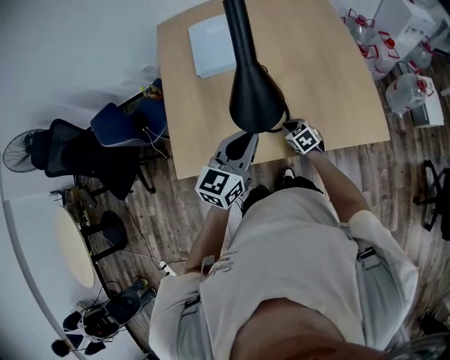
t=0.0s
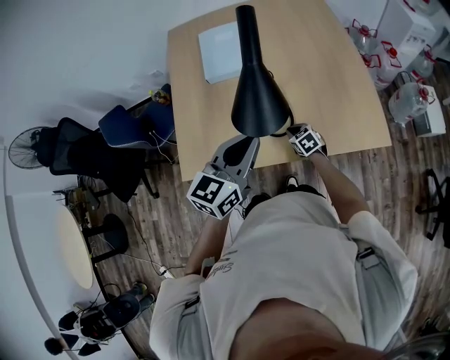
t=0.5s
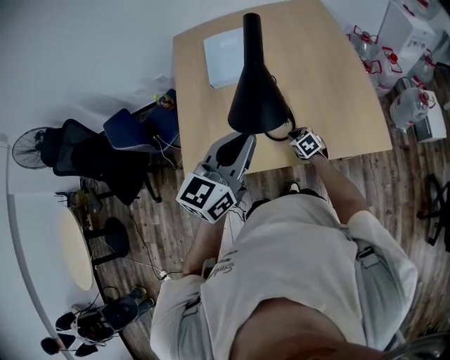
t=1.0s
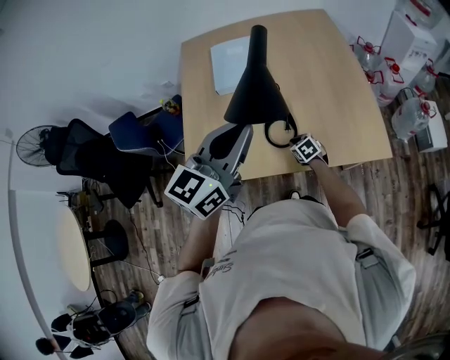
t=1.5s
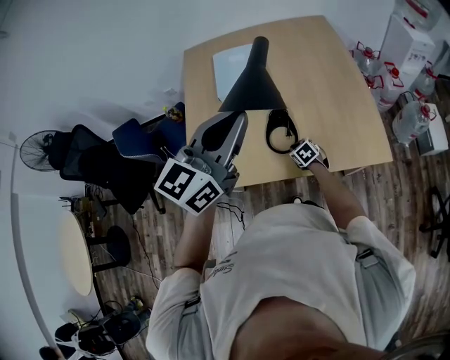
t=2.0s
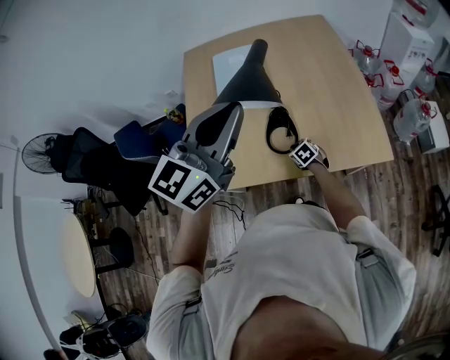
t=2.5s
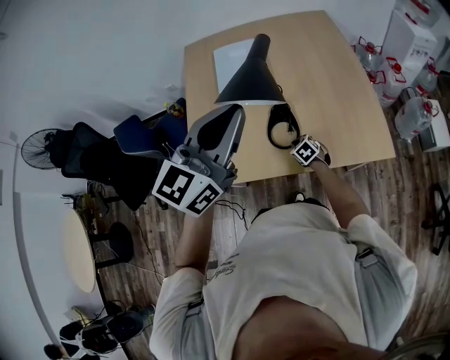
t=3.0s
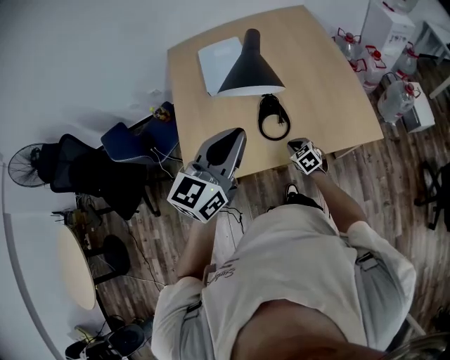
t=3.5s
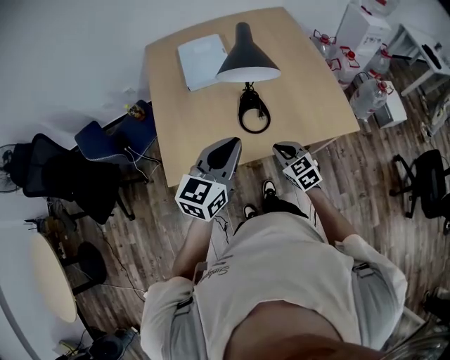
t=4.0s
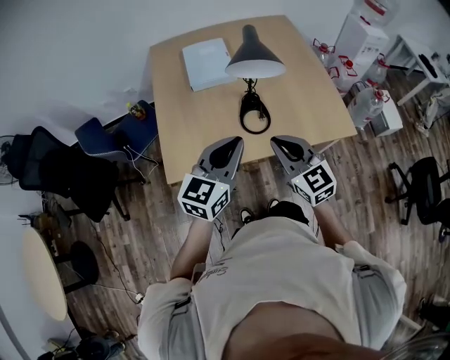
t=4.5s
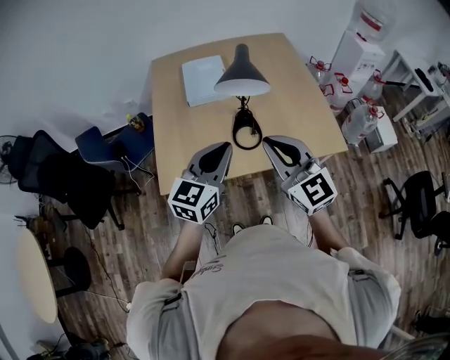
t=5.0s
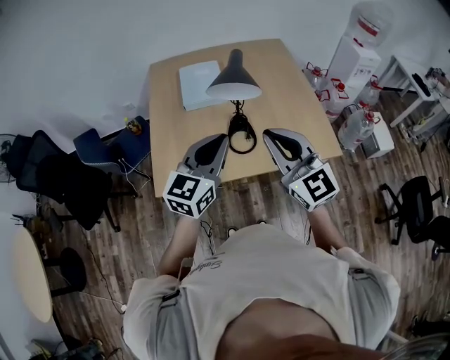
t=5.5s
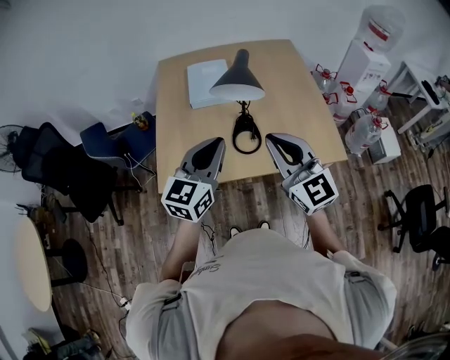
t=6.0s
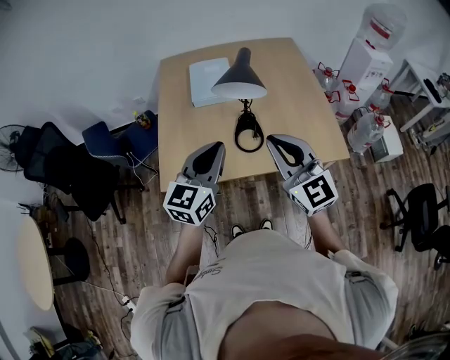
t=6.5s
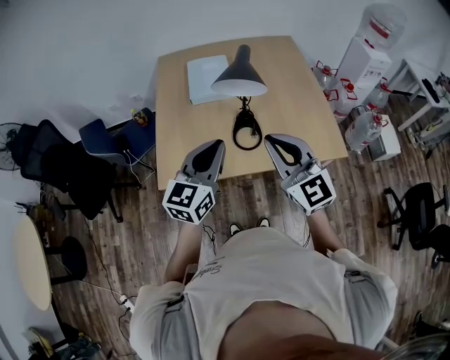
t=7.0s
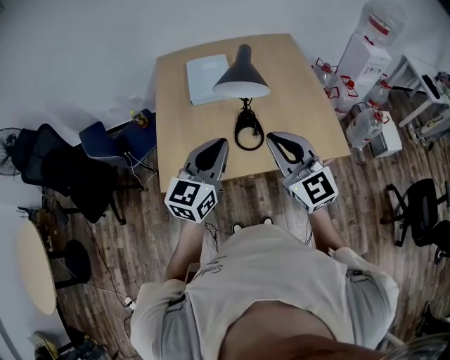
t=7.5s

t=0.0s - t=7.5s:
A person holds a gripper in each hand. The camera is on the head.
t=0.0s - t=2.0s: The left gripper heads upward, covering about 20 cm.
t=2.0s - t=4.0s: The left gripper moves downward and backward, about 15 cm, while the right gripper goes approximately 20 cm upward and backward, and changes its angle by about 20 degrees.
t=4.0s - t=5.5s: The left gripper heads upward, covering roughly 5 cm. The right gripper is displaced upward by some 30 cm, and angles its fingers upward, by about 40 degrees.
t=5.5s - t=7.5s: There are only small adjustments of the grippers.

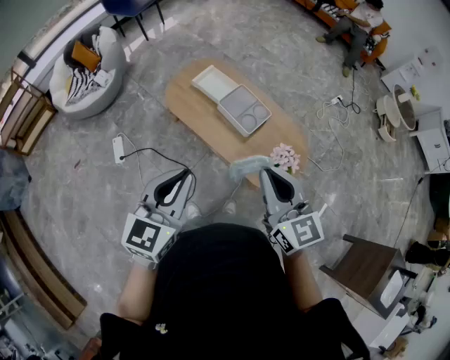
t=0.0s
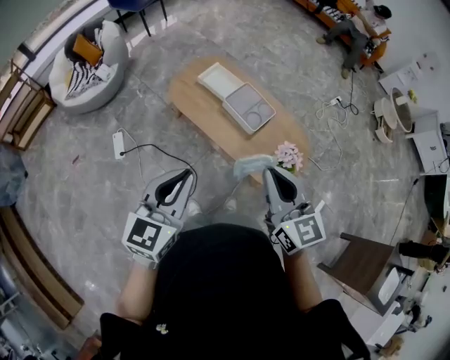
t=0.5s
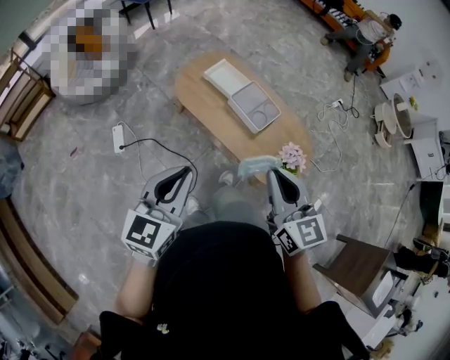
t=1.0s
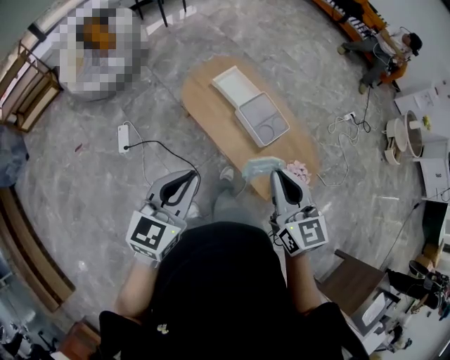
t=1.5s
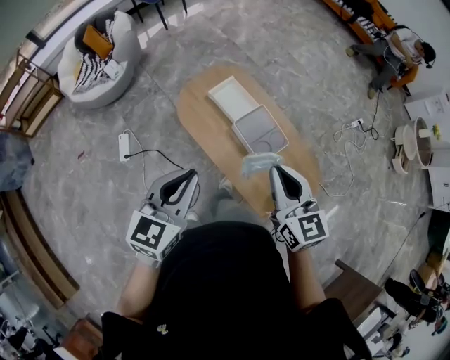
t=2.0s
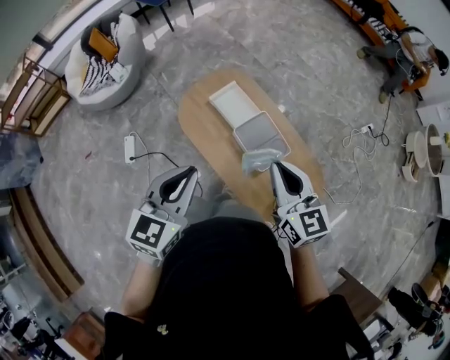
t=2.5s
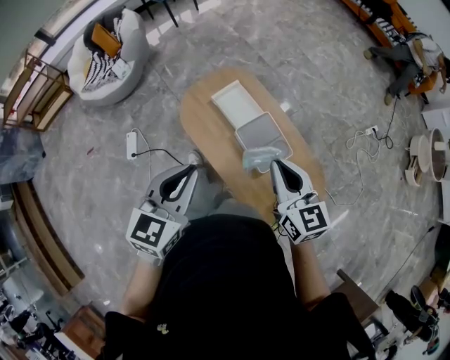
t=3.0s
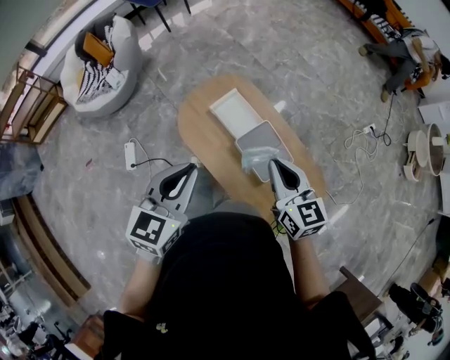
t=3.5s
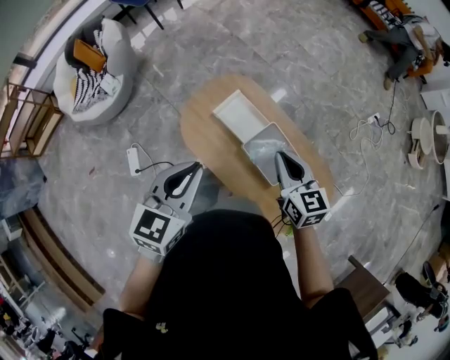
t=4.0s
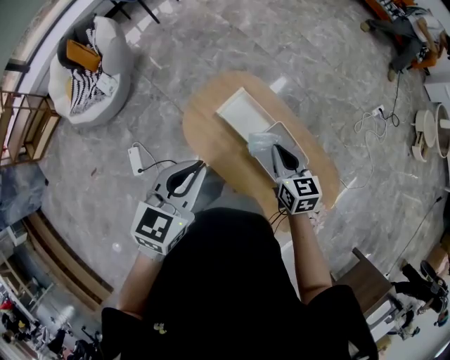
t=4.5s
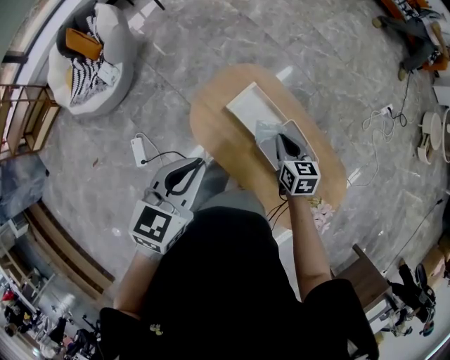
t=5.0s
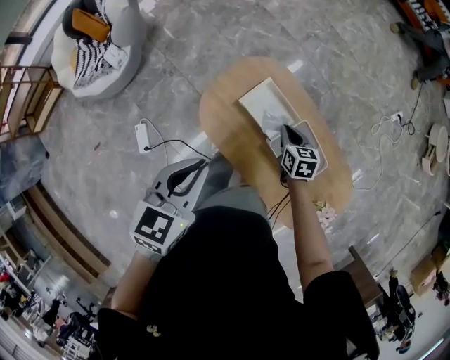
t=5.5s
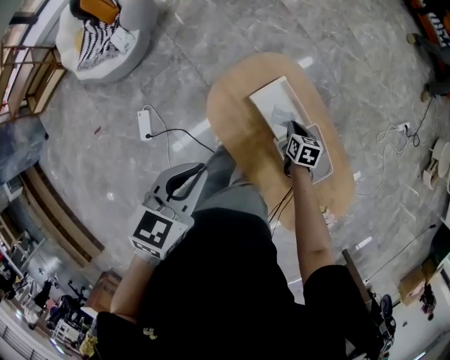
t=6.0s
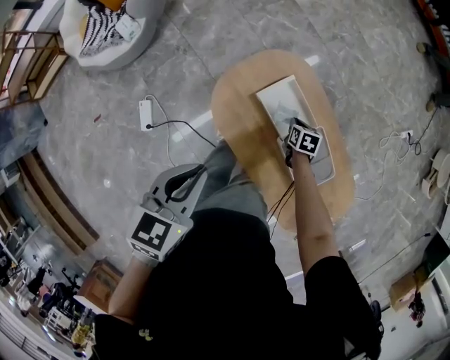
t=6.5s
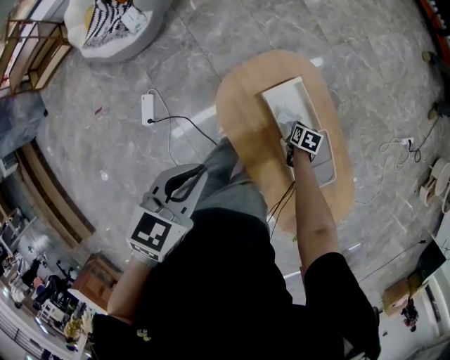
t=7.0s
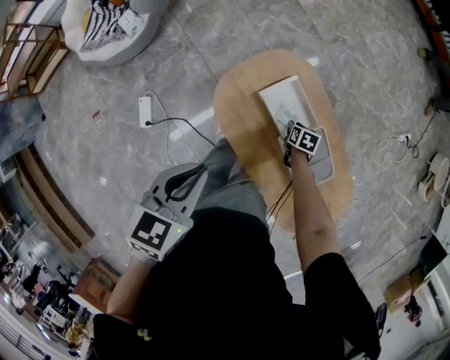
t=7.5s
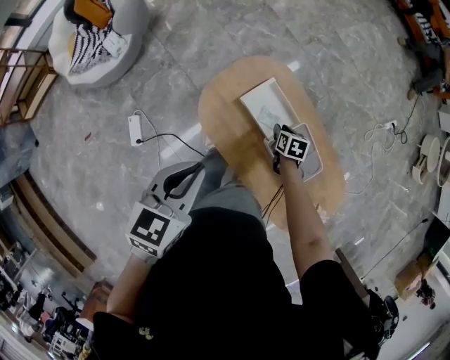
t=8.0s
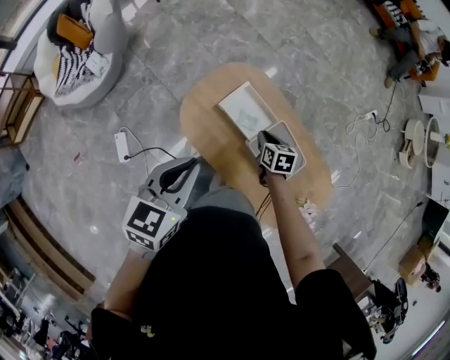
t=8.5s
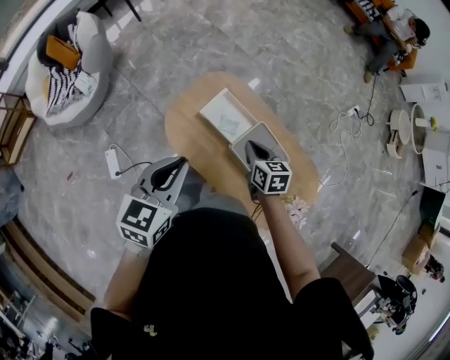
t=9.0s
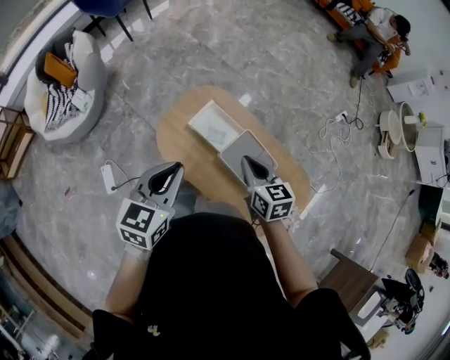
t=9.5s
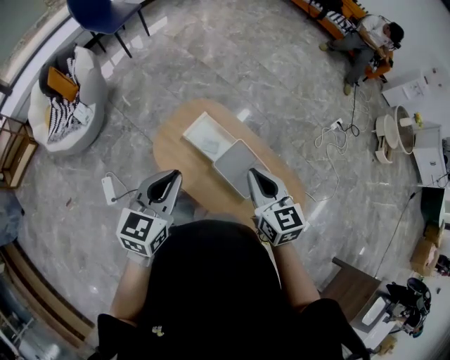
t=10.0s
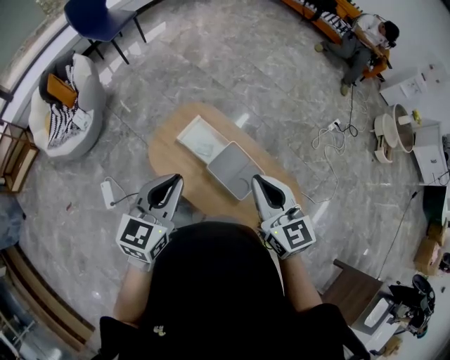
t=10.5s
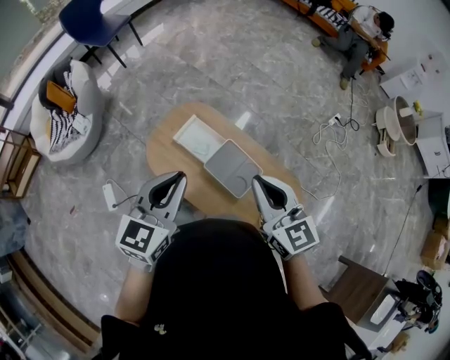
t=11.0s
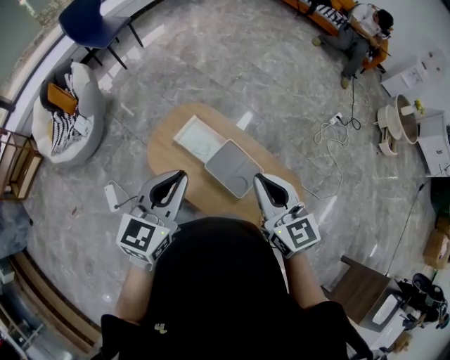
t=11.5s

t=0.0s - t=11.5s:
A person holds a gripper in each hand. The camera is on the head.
t=0.0s - t=2.0s: The grippers both shift forward by approximately 20 cm.
t=2.0s - t=4.0s: The left gripper goes roughly 25 cm forward. The right gripper travels forward and downward by about 25 cm.
t=4.0s - t=6.0s: The left gripper goes some 15 cm downward, to the left and forward. Meanwhile the right gripper moves downward and forward, roughly 35 cm, and tips its fingers downward by some 30 degrees.
t=6.0s - t=7.5s: The right gripper shifts approximately 10 cm downward, and opens up.
t=7.5s - t=9.5s: The left gripper travels to the right and upward by some 15 cm, and changes its angle by some 20 degrees. The right gripper shifts some 40 cm upward, angles its fingers upward, by approximately 40 degrees, and closes its fingers.
t=9.5s - t=11.5s: The left gripper shifts approximately 15 cm to the right and upward, while the right gripper goes some 20 cm upward and to the right, and swivels roughly 20 degrees.

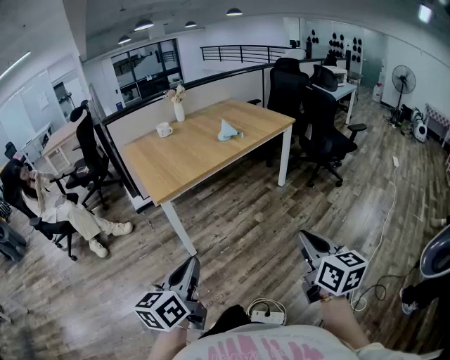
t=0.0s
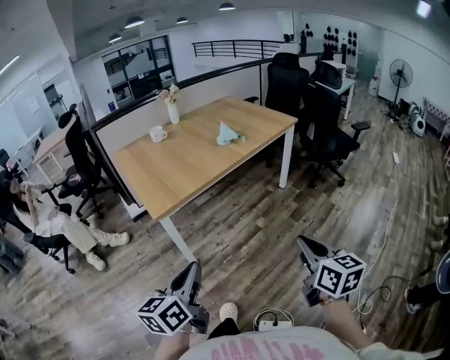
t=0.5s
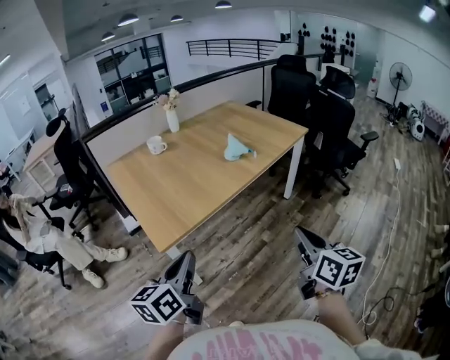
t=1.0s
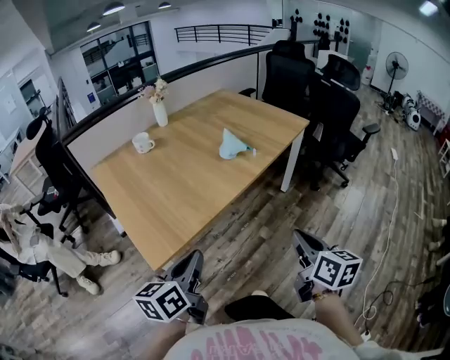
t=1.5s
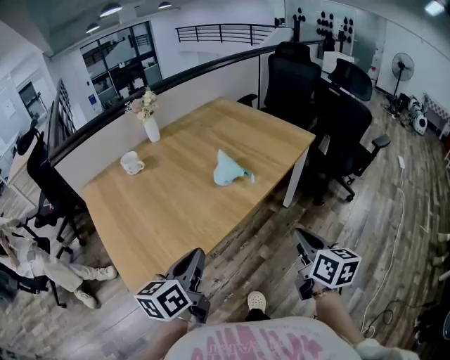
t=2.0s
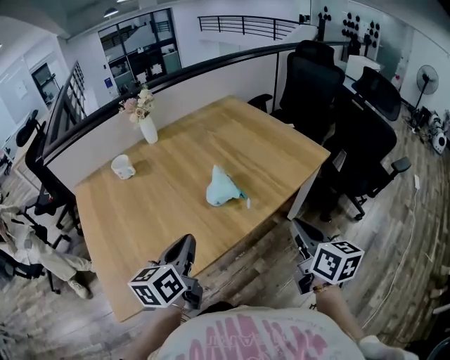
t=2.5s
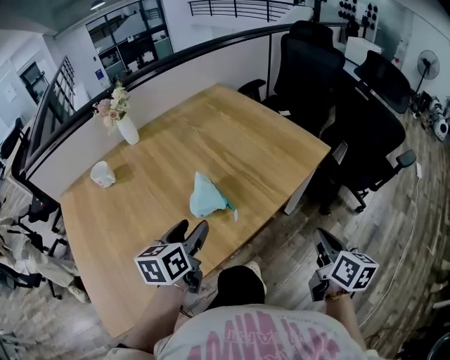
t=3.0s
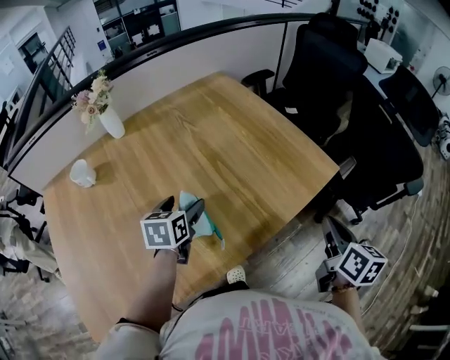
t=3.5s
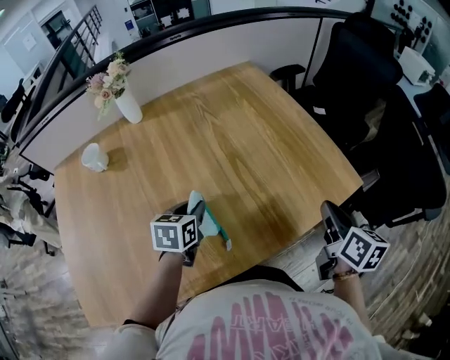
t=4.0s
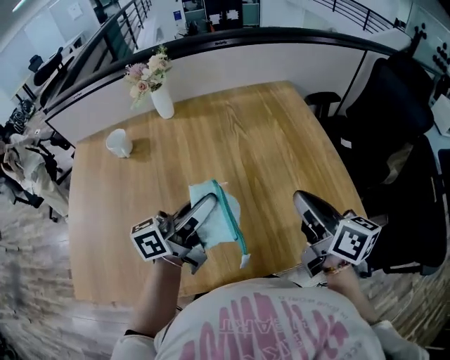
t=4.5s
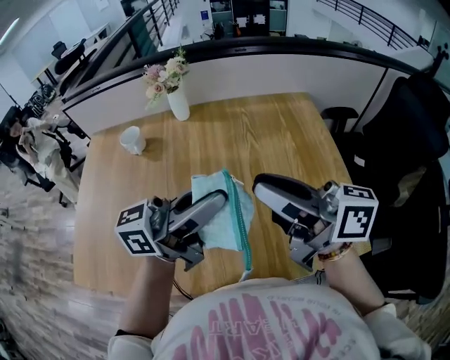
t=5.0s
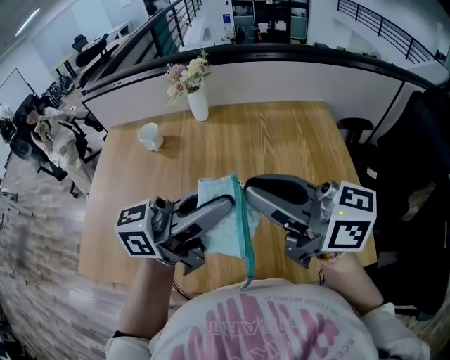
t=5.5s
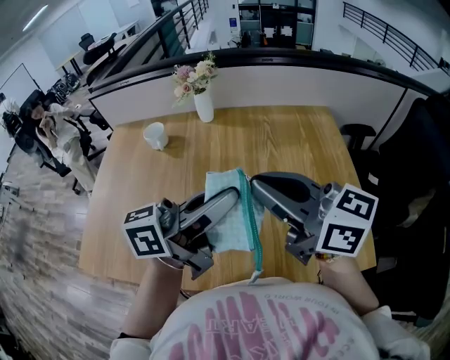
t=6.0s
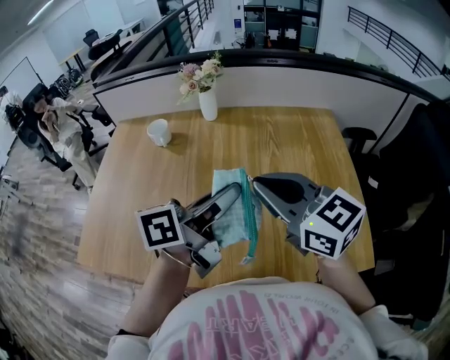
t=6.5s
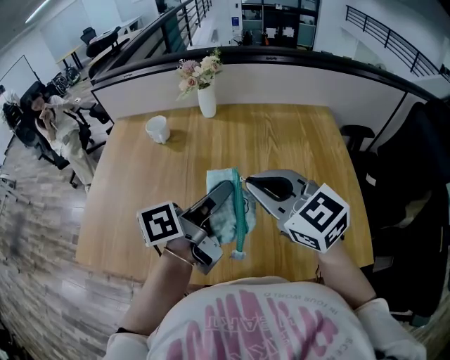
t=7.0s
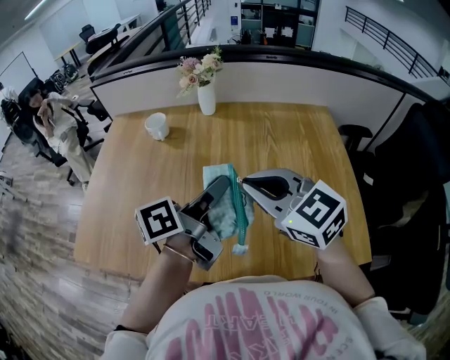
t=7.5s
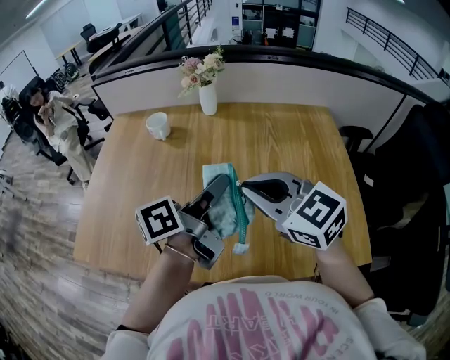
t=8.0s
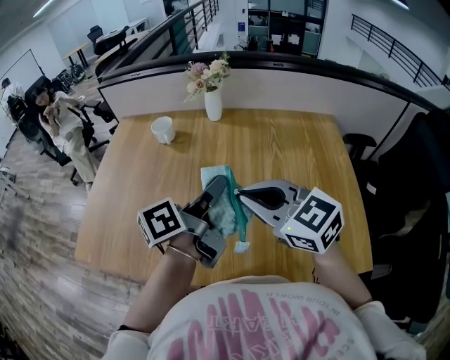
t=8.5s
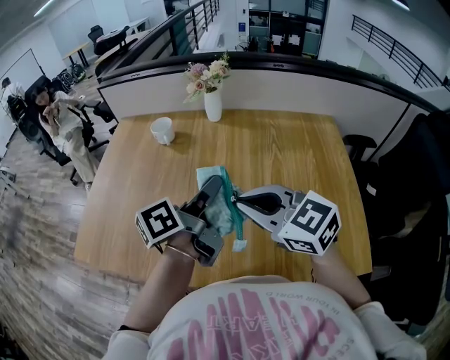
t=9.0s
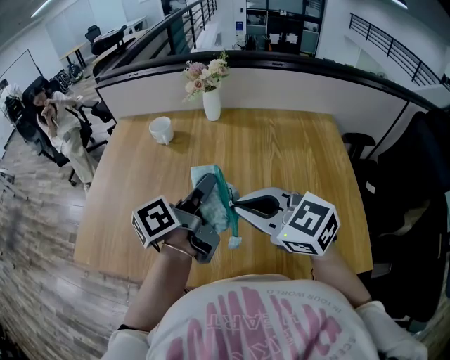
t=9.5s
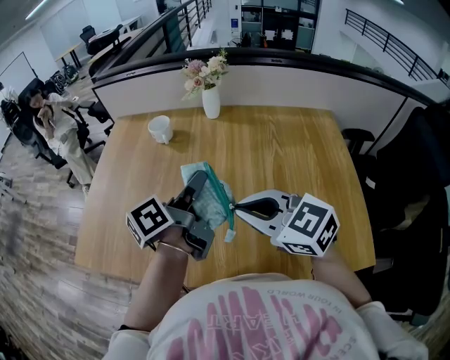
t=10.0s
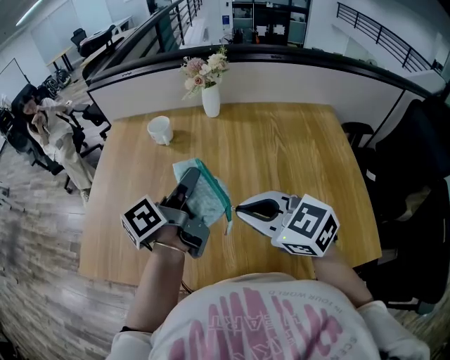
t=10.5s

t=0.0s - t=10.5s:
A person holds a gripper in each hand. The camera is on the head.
t=0.0s - t=2.0s: The two grippers travel together, forward, some 50 cm.
t=2.0s - t=4.0s: Both grippers are carried forward, roughly 50 cm. The left gripper changes its angle by approximately 30 degrees, and opens, then closes again.
t=4.0s - t=6.5s: The right gripper shifts by about 30 cm, and changes its angle by some 80 degrees, while the left gripper is displaced upward by roughly 25 cm, and points its fingers approximately 50 degrees further upward.
t=6.5s - t=8.5s: The right gripper ends up approximately 5 cm from where it was; the left gripper shifts by approximately 5 cm.
t=8.5s - t=10.5s: The right gripper moves roughly 5 cm, while the left gripper heads to the left and forward, covering roughly 10 cm.
